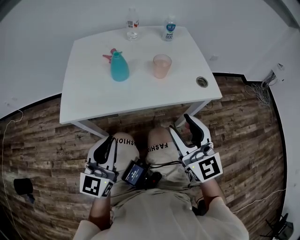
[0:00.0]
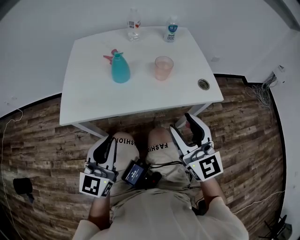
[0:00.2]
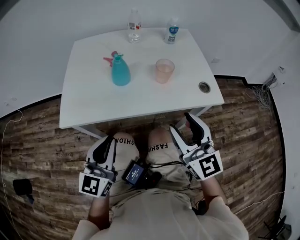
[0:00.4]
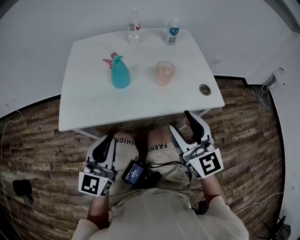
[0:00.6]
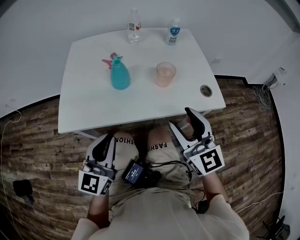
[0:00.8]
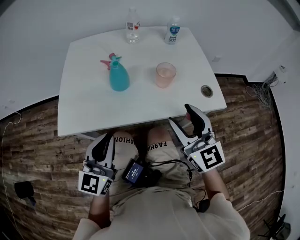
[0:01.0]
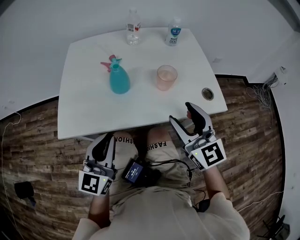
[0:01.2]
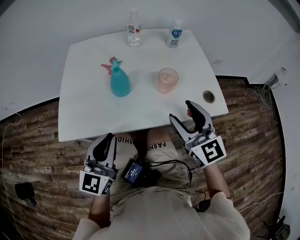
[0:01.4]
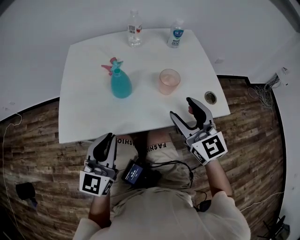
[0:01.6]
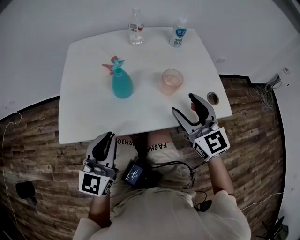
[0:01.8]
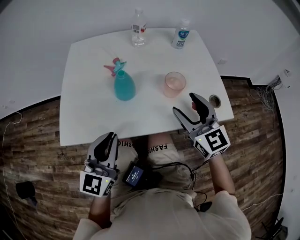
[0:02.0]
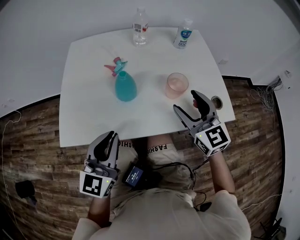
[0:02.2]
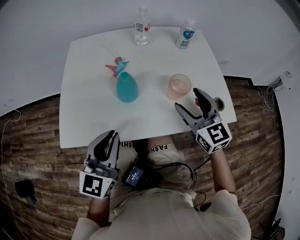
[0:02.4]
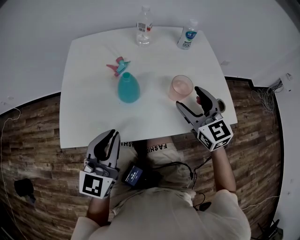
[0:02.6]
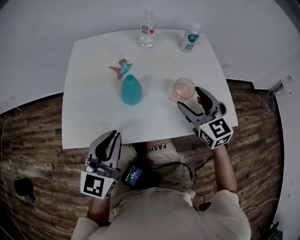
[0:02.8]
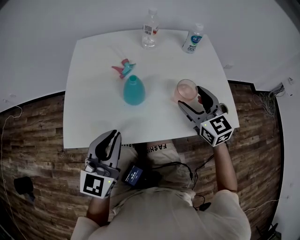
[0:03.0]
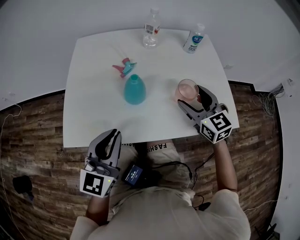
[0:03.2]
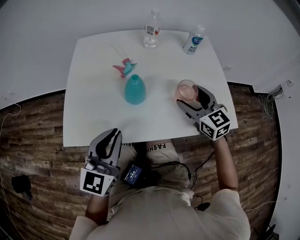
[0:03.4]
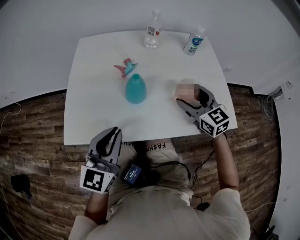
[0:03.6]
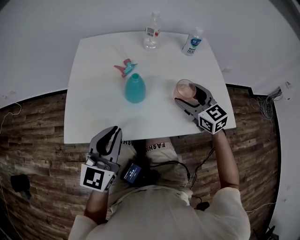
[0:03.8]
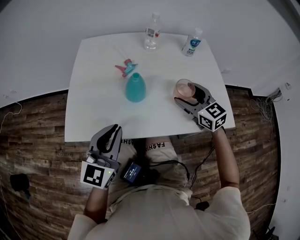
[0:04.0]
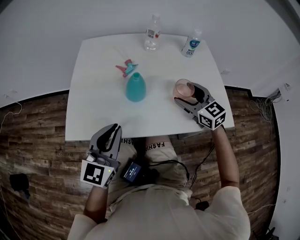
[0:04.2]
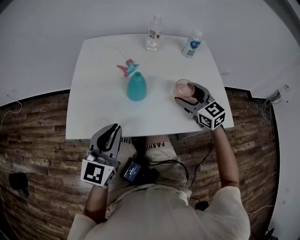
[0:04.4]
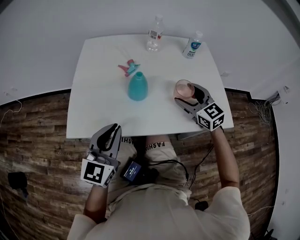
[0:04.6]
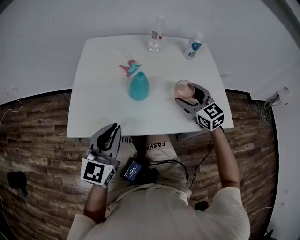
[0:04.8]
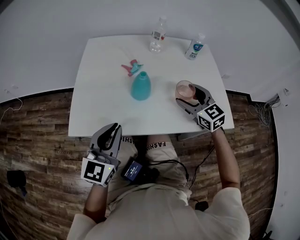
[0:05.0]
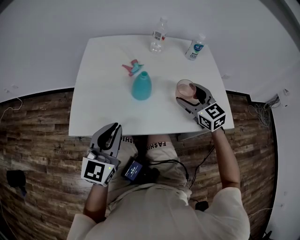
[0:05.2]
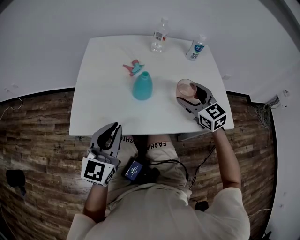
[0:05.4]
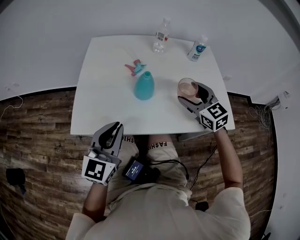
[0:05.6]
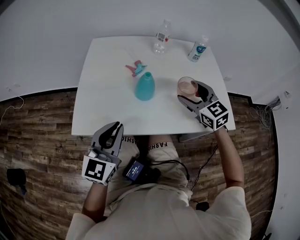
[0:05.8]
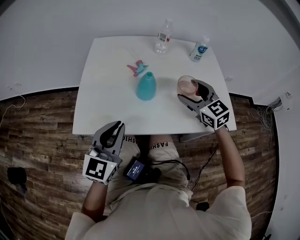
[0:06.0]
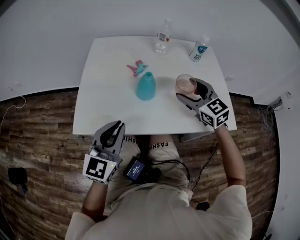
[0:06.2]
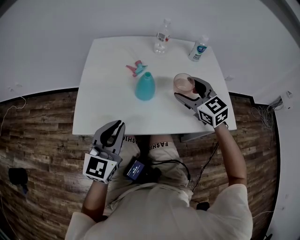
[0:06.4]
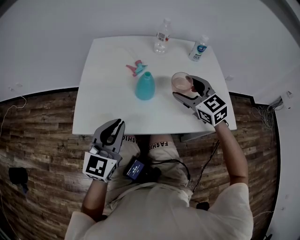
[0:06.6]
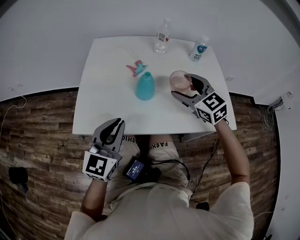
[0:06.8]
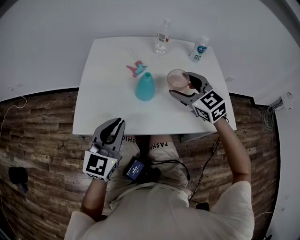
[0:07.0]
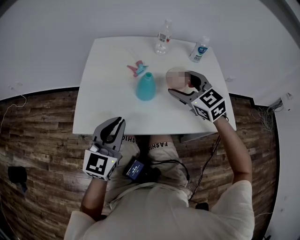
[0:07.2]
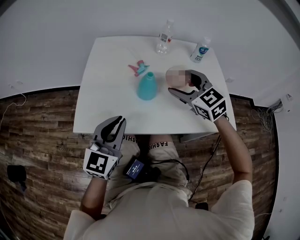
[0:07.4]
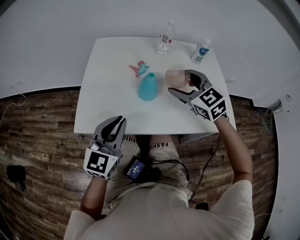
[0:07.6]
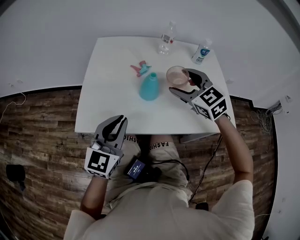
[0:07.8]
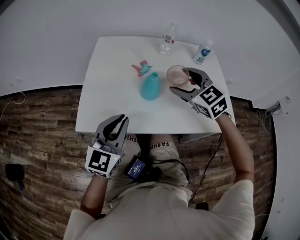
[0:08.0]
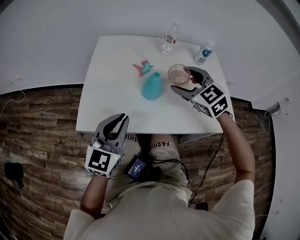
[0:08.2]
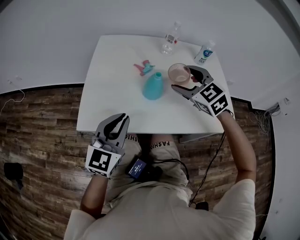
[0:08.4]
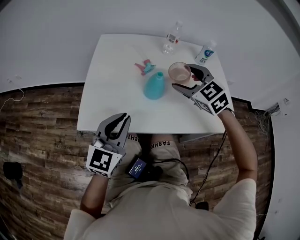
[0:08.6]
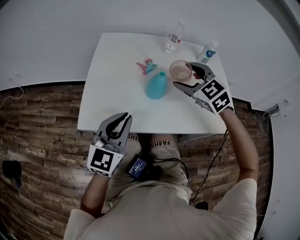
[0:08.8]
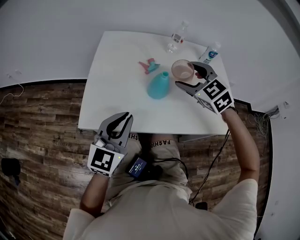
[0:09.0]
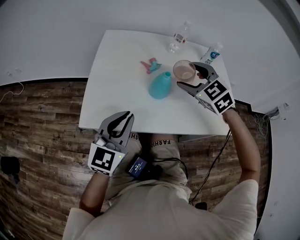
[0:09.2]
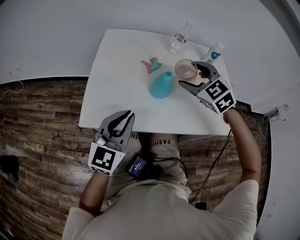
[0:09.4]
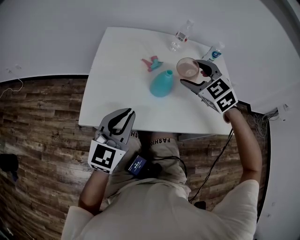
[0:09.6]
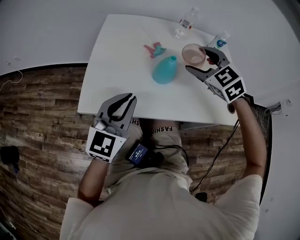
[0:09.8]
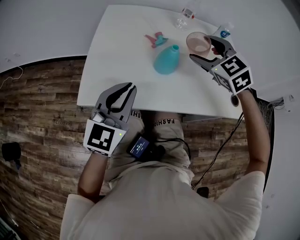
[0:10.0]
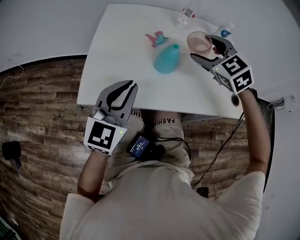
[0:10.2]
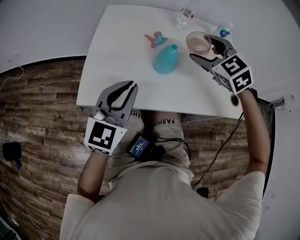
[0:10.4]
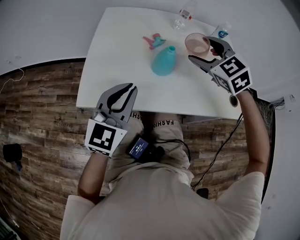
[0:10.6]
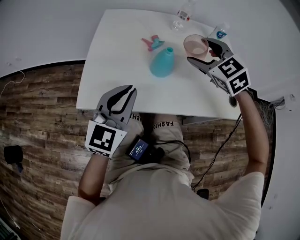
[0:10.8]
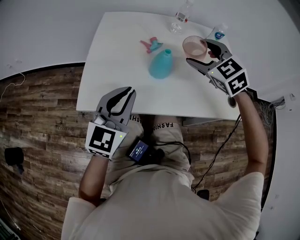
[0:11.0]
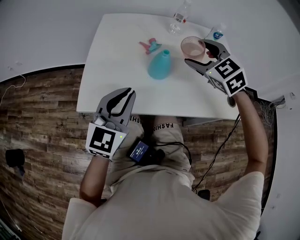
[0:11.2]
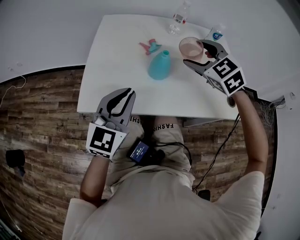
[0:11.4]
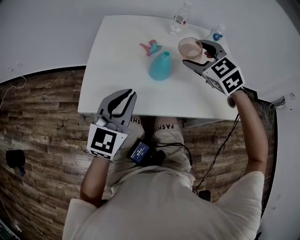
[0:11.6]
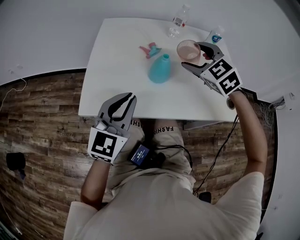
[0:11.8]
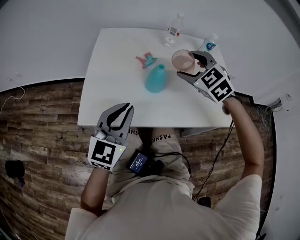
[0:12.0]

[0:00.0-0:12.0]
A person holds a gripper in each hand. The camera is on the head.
0.0 to 1.6 s: The grippers both shift forward by about 15 cm.
1.6 to 3.0 s: The right gripper travels forward by roughly 10 cm. The left gripper travels forward by approximately 5 cm.
3.0 to 4.4 s: The grippers make only small movements.
4.4 to 6.0 s: The right gripper changes place by about 5 cm.
6.0 to 7.6 s: The right gripper travels to the left by about 5 cm.
7.6 to 10.4 s: There are only small adjustments of the grippers.
10.4 to 12.0 s: Both grippers stay put.

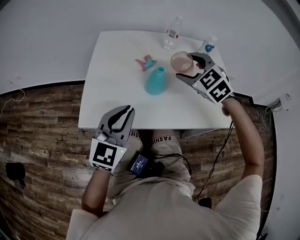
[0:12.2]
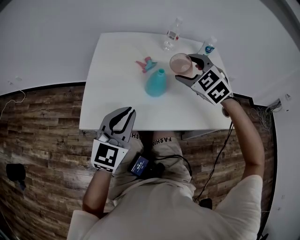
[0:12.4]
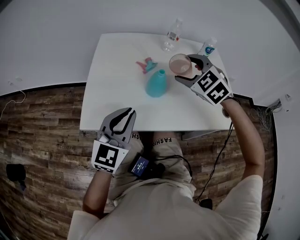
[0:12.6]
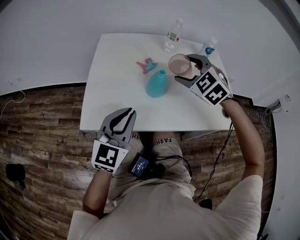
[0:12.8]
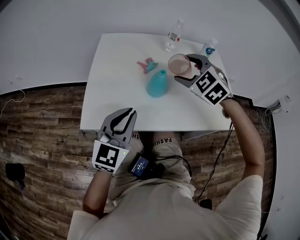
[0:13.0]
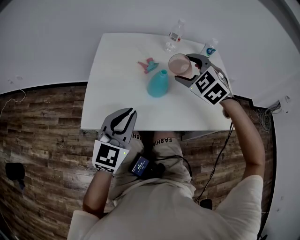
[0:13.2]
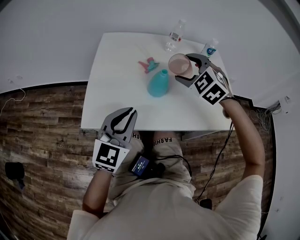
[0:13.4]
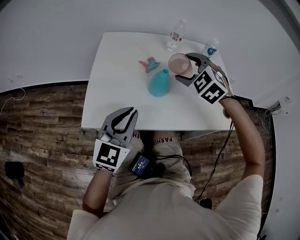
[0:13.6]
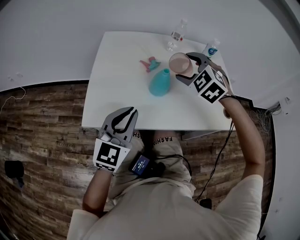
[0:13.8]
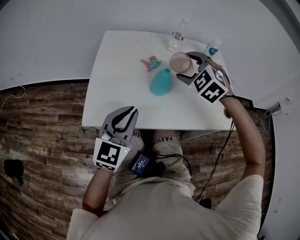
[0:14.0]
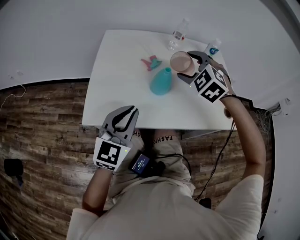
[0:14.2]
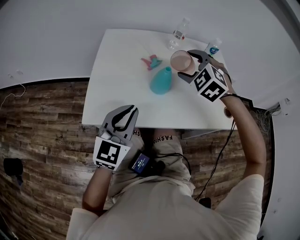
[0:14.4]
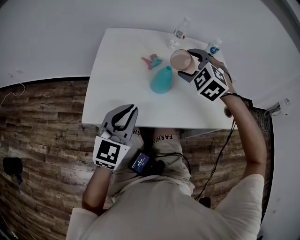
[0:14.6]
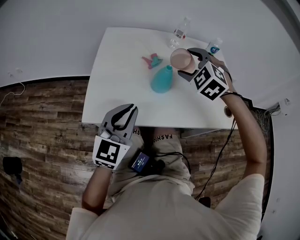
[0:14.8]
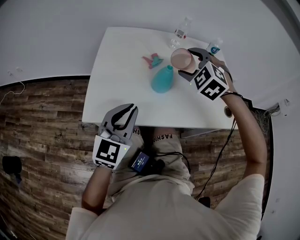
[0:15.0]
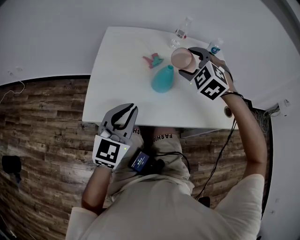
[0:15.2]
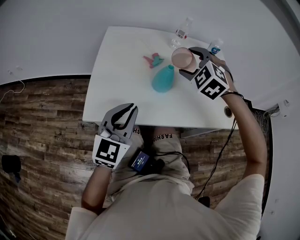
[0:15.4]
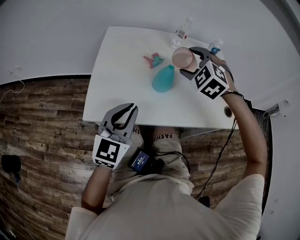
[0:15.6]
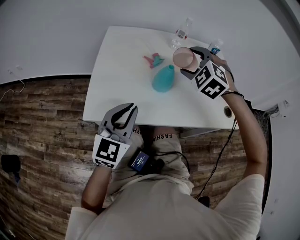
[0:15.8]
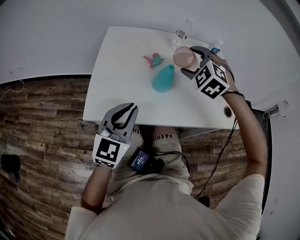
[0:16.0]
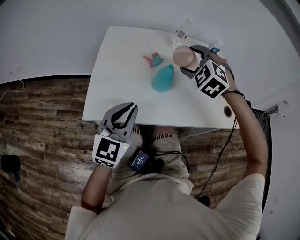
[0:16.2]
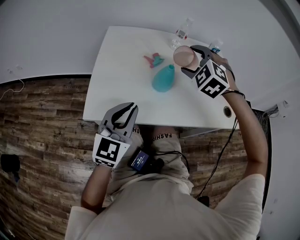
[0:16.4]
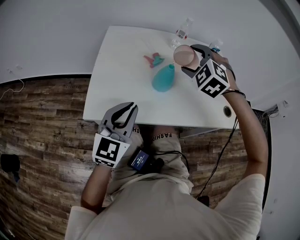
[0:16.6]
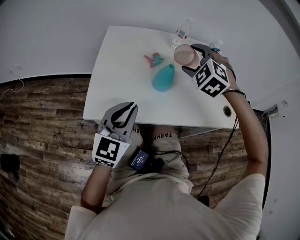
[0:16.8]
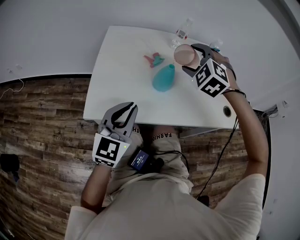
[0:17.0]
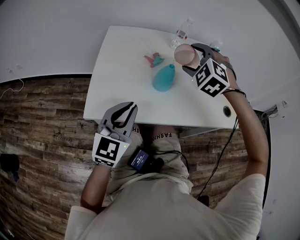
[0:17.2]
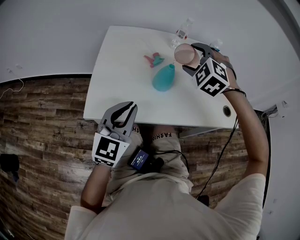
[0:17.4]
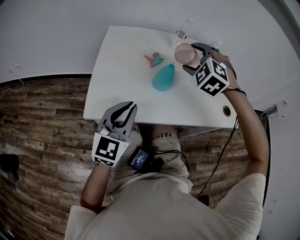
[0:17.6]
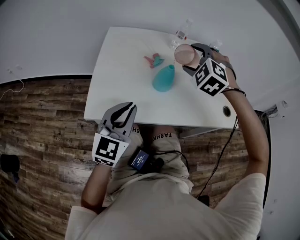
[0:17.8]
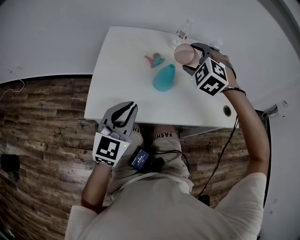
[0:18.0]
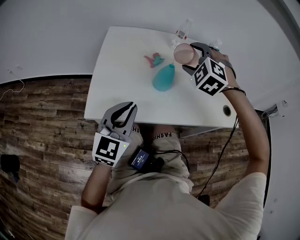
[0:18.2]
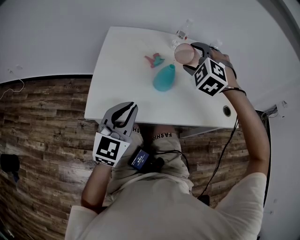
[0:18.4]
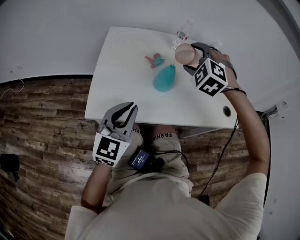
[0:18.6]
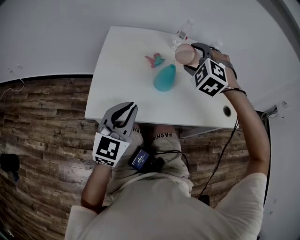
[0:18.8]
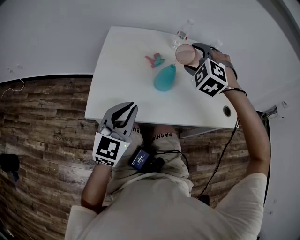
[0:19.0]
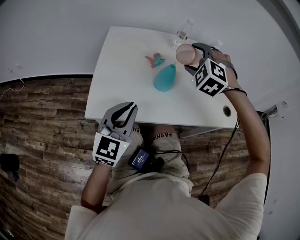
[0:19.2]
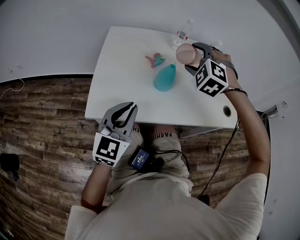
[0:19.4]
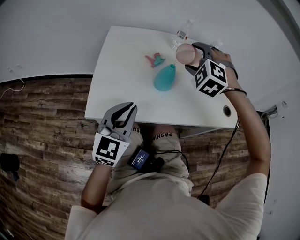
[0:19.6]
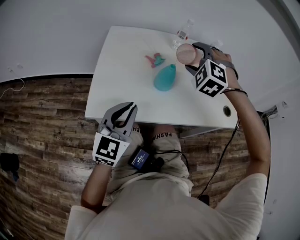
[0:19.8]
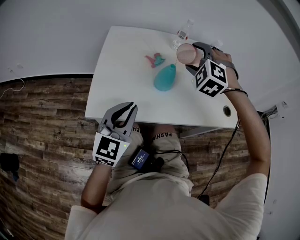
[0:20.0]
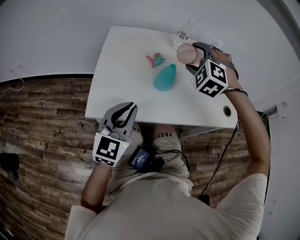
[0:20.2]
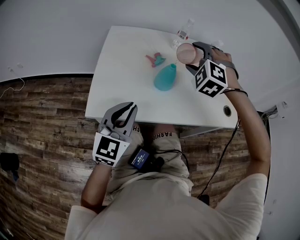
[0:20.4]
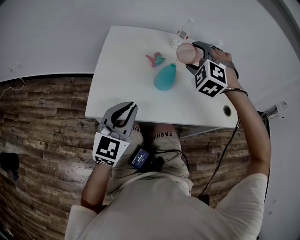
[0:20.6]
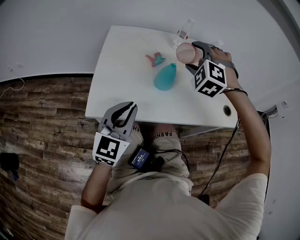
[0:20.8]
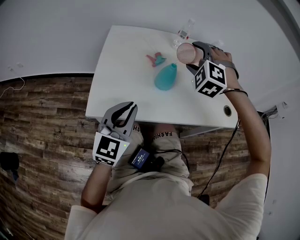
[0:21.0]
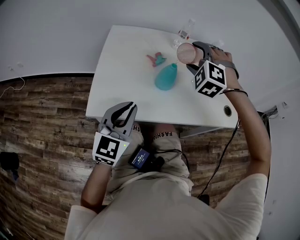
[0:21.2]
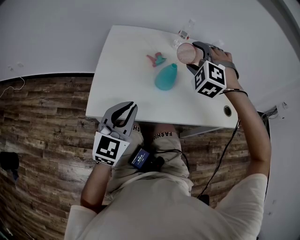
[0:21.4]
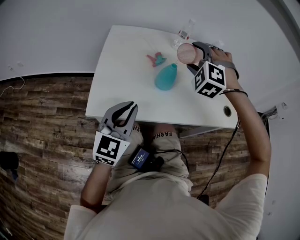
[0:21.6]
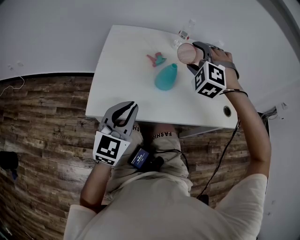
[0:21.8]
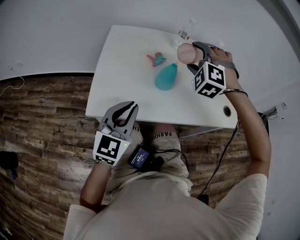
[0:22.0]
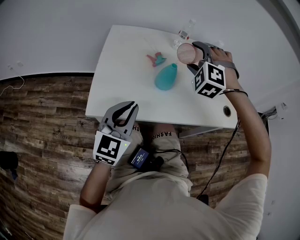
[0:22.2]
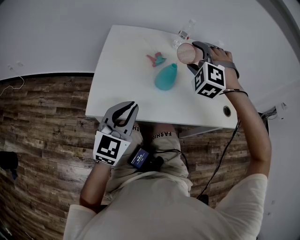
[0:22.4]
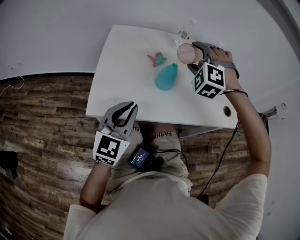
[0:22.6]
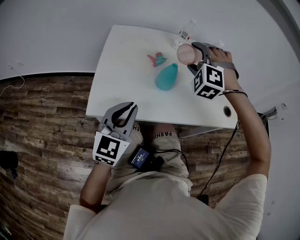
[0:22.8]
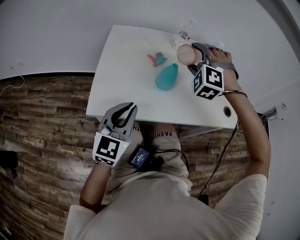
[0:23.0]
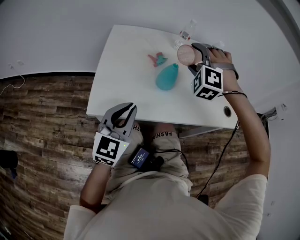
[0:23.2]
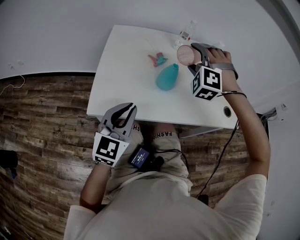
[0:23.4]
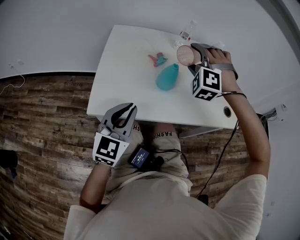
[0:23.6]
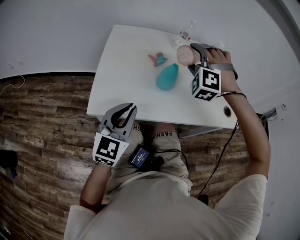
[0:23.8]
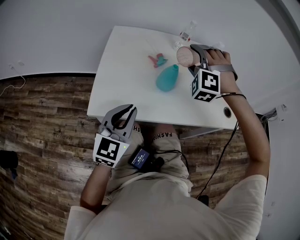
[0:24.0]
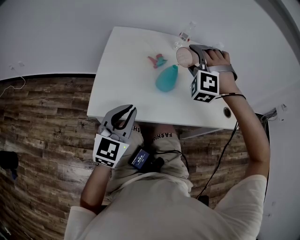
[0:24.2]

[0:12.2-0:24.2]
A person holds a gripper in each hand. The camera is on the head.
12.2 to 15.2 s: The grippers move only a little.
15.2 to 16.6 s: The two grippers keep their place.
16.6 to 18.2 s: Neither gripper changes place.
18.2 to 19.8 s: The grippers move only a little.
19.8 to 21.2 s: Neither gripper changes place.
21.2 to 24.2 s: The grippers move only a little.

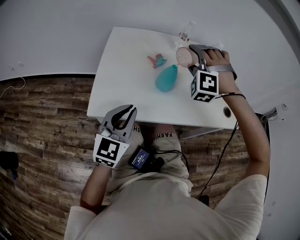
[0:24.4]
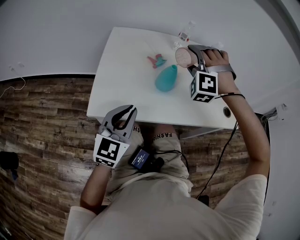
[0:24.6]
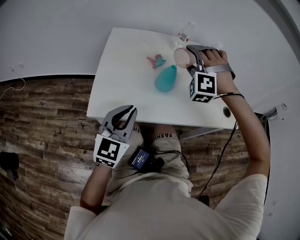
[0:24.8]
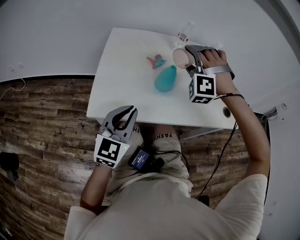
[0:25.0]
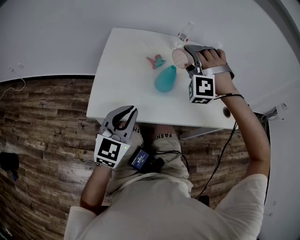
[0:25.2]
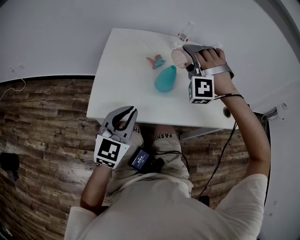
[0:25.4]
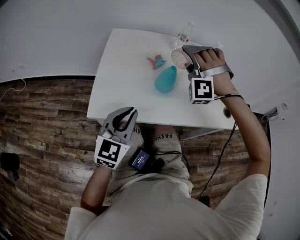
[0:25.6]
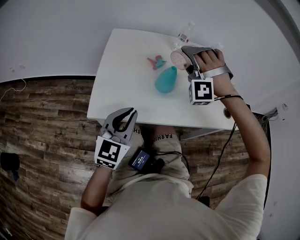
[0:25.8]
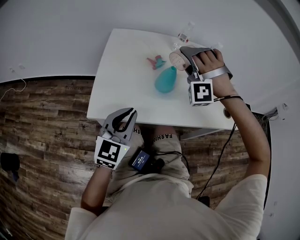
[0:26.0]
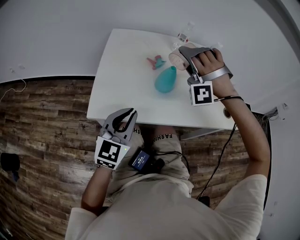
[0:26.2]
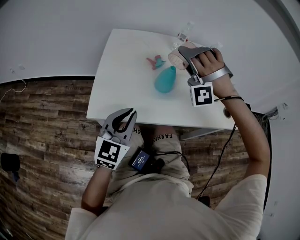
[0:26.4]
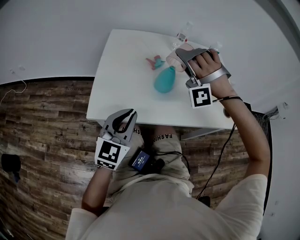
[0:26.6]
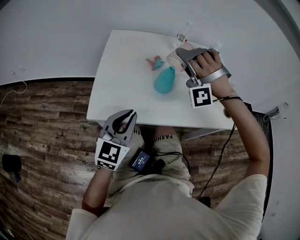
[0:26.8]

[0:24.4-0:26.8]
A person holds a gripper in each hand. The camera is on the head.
24.4 to 25.6 s: There are only small adjustments of the grippers.
25.6 to 26.8 s: The grippers move only a little.
